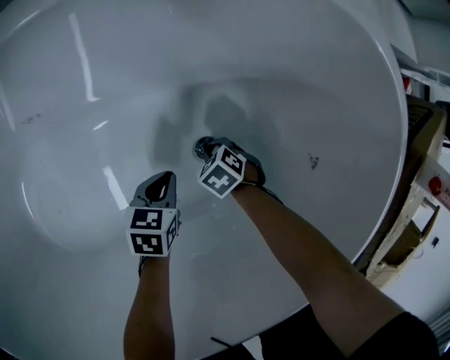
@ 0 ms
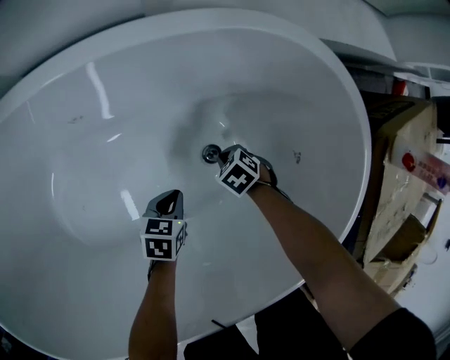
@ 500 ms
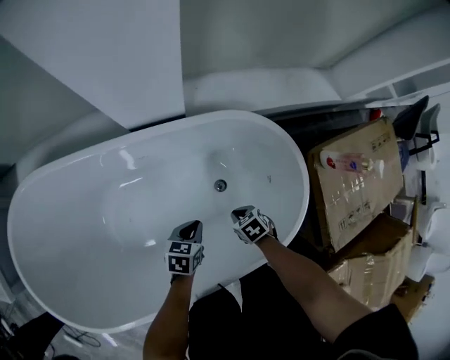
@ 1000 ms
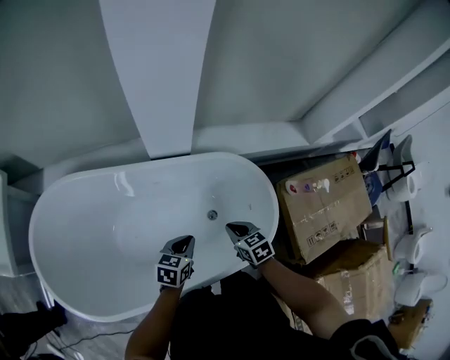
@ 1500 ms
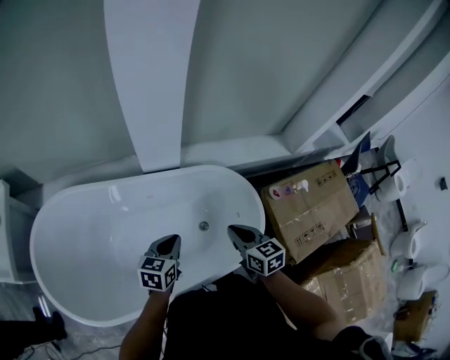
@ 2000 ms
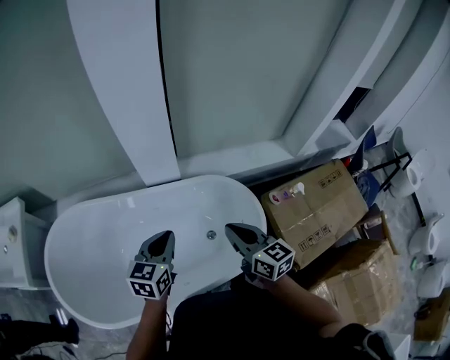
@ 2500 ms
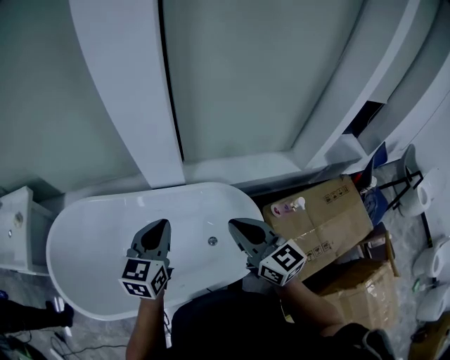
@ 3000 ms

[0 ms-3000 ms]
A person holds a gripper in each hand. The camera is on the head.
0 ms to 1500 ms: Both grippers move upward, about 60 cm. The right gripper tilts its fingers roughly 30 degrees upward.
1500 ms to 3000 ms: Both grippers move upward, roughly 35 cm. The left gripper turns by about 30 degrees; the right gripper angles its fingers upward, by approximately 40 degrees.

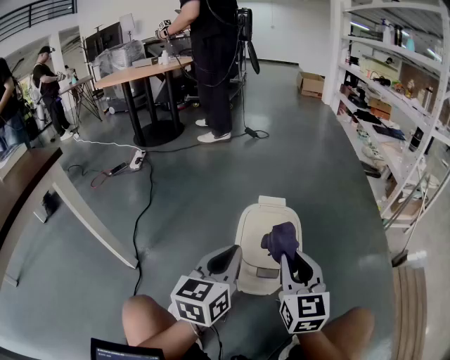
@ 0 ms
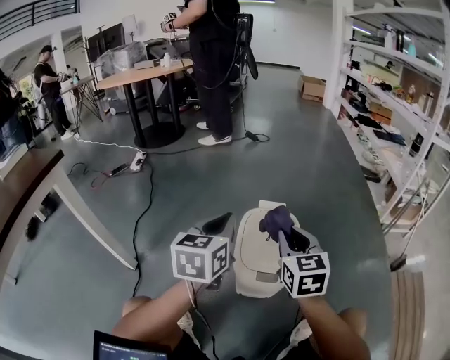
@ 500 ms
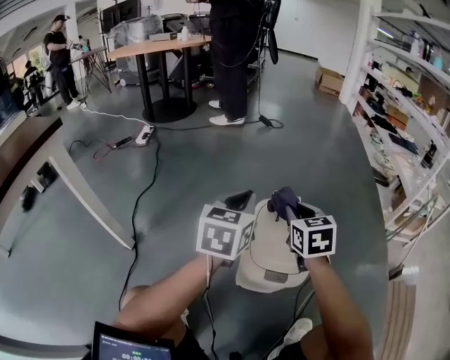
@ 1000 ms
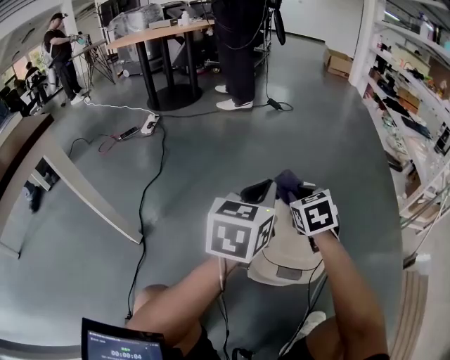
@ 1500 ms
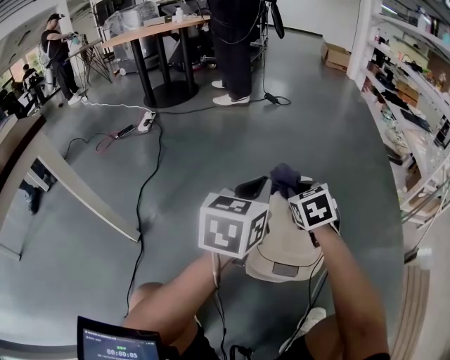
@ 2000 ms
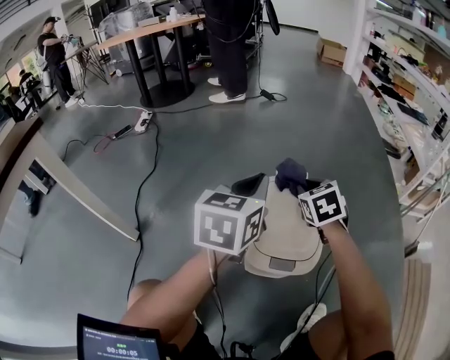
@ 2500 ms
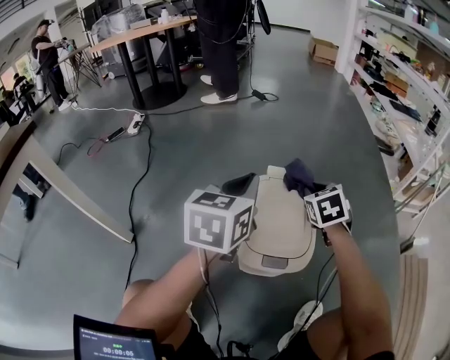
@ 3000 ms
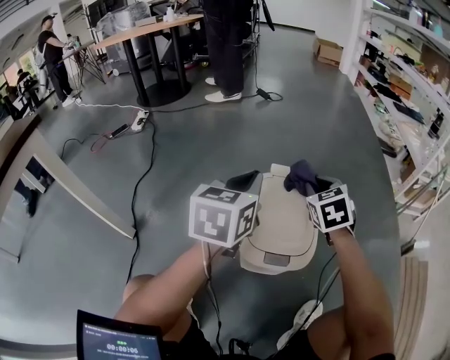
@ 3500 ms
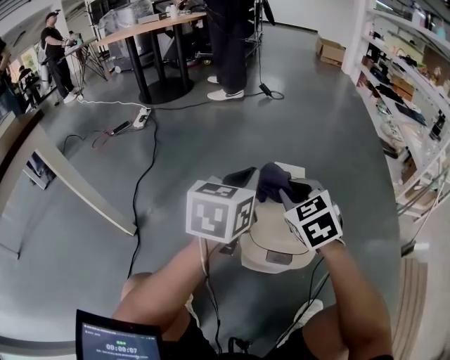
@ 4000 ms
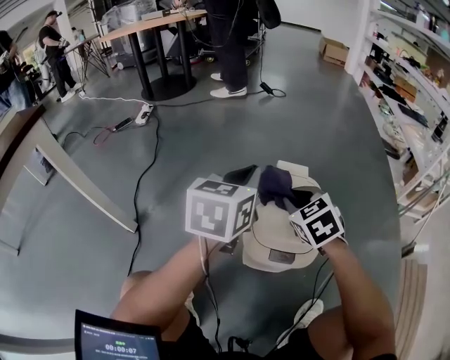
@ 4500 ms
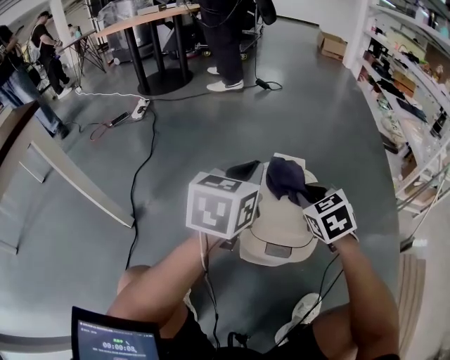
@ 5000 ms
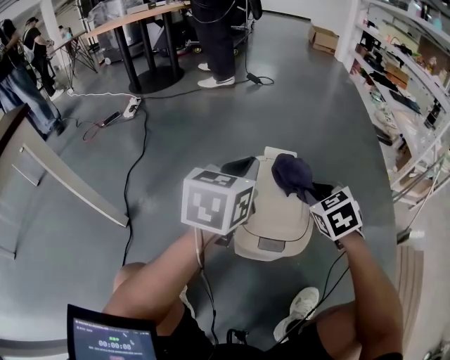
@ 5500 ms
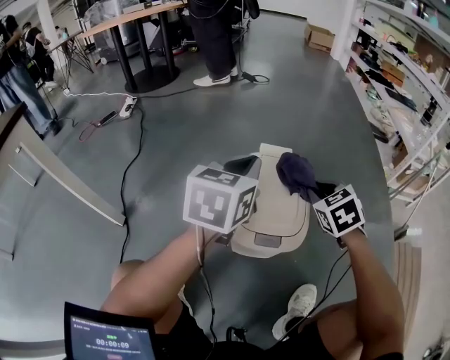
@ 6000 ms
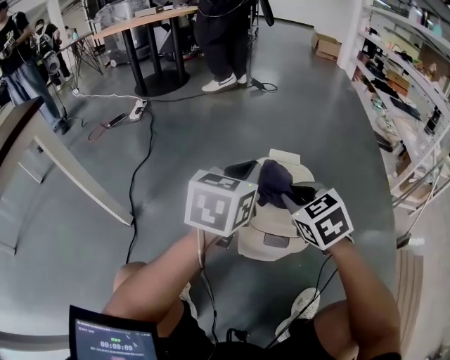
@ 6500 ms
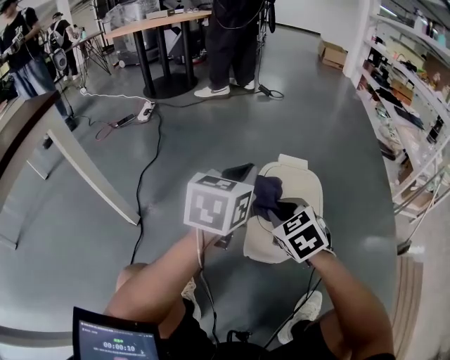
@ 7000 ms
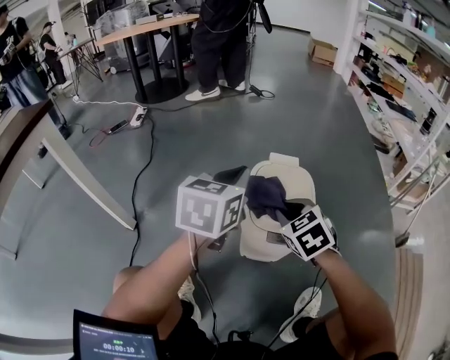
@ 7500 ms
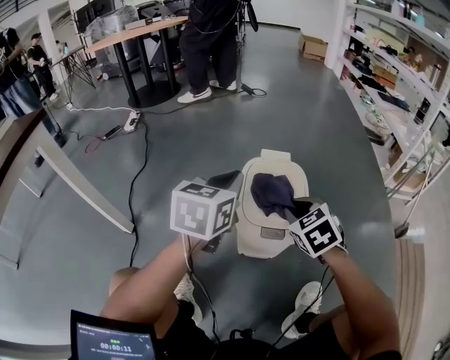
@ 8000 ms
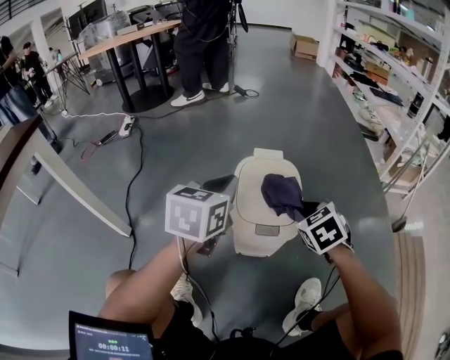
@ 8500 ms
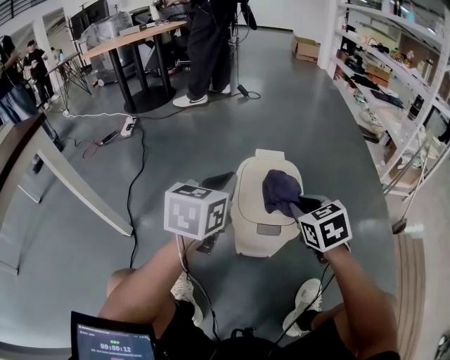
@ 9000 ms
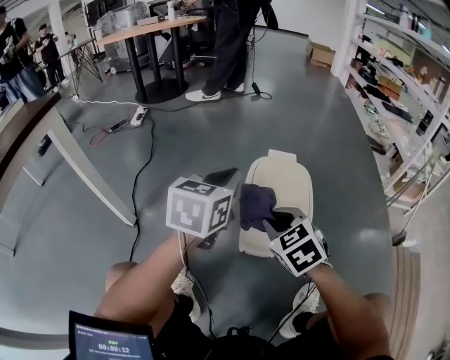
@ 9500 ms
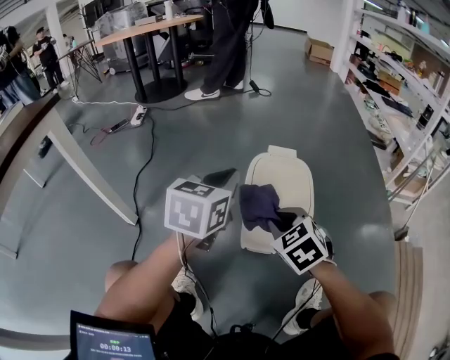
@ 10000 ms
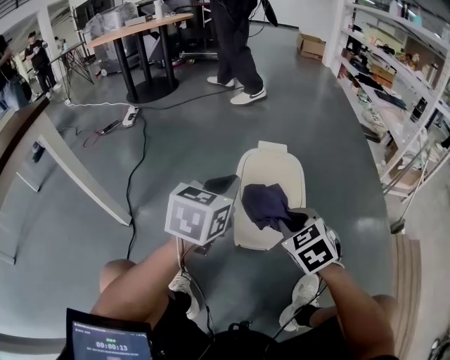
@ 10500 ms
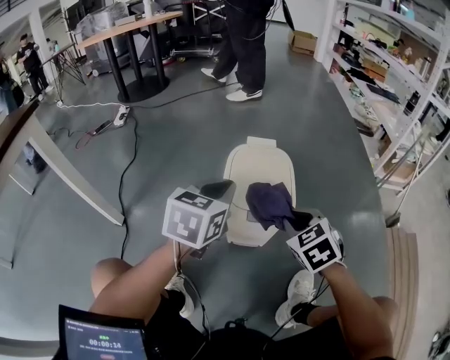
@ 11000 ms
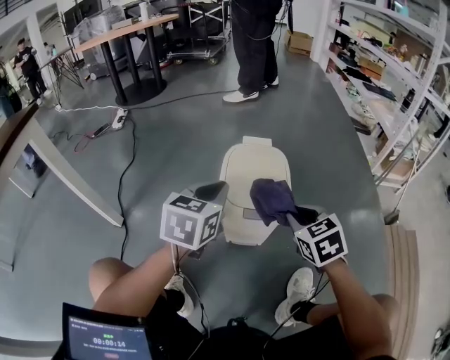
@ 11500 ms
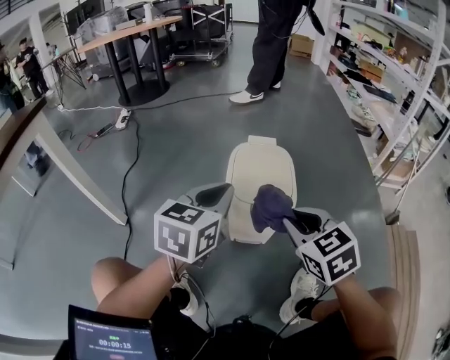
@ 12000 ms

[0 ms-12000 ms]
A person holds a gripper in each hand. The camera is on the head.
0 ms to 2000 ms: The right gripper goes about 25 cm forward and downward, and angles its fingers downward, by about 30 degrees. The left gripper goes roughly 15 cm forward.
2000 ms to 4000 ms: The right gripper goes approximately 5 cm backward, and reaches approximately 10 cm to the right, then returns.
4000 ms to 6000 ms: The right gripper goes some 15 cm to the right. Meanwhile the left gripper ends up approximately 5 cm from where it was.
6000 ms to 8000 ms: The right gripper shifts approximately 10 cm backward and to the left. The left gripper moves approximately 5 cm.
8000 ms to 10000 ms: The right gripper is displaced backward and to the left by roughly 10 cm.
10000 ms to 12000 ms: The right gripper goes approximately 10 cm to the right, backward and upward; the left gripper is displaced backward by approximately 5 cm.

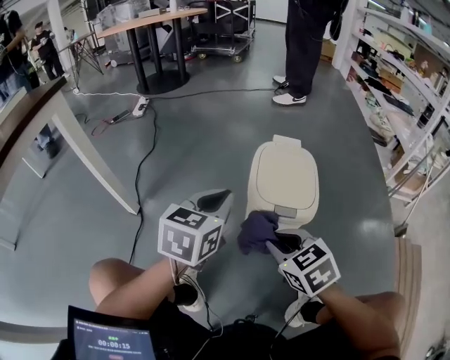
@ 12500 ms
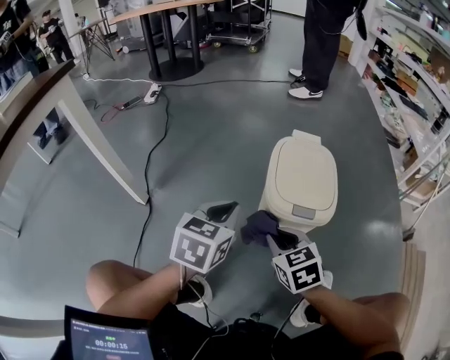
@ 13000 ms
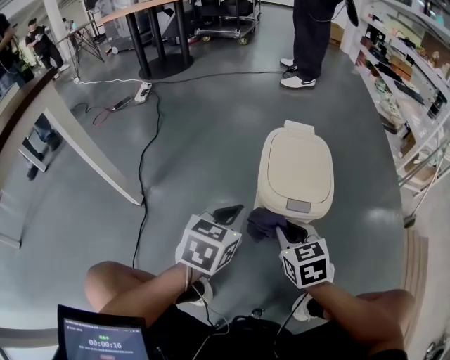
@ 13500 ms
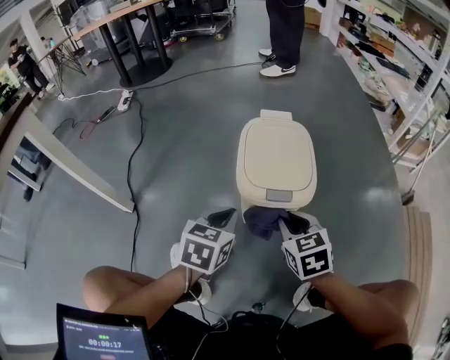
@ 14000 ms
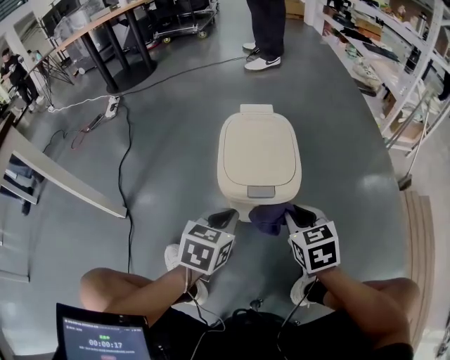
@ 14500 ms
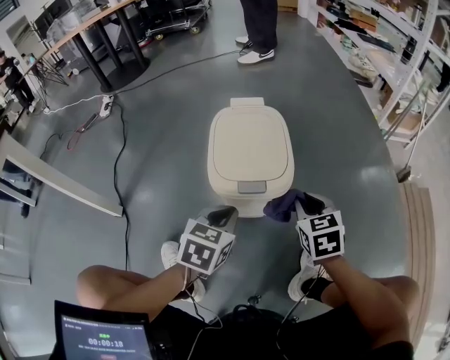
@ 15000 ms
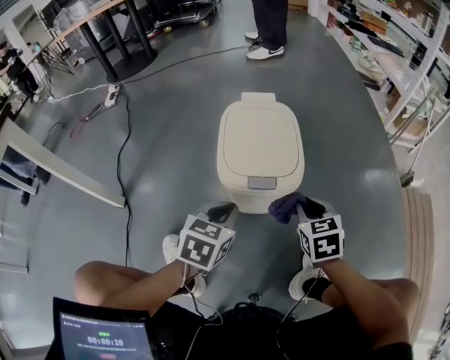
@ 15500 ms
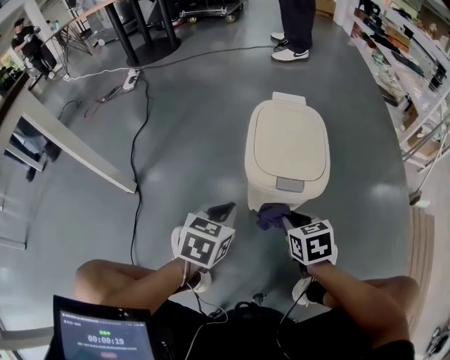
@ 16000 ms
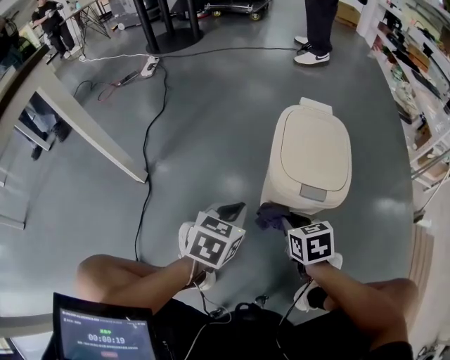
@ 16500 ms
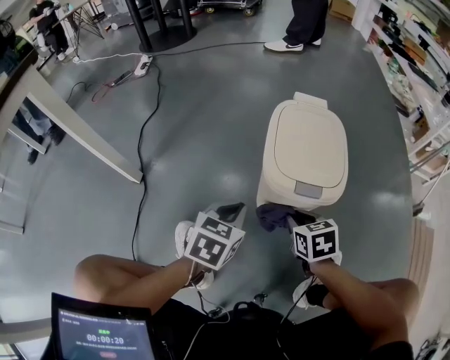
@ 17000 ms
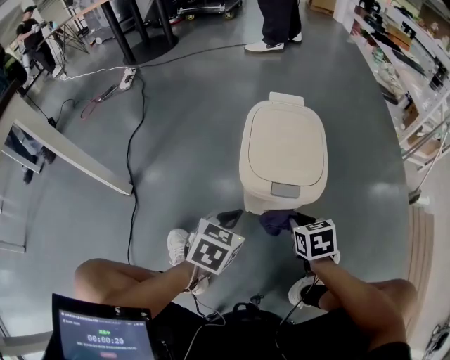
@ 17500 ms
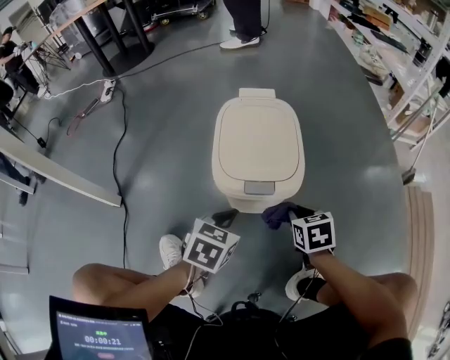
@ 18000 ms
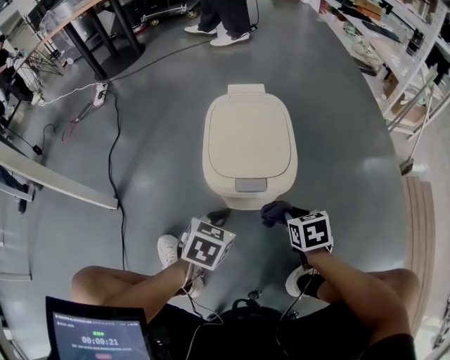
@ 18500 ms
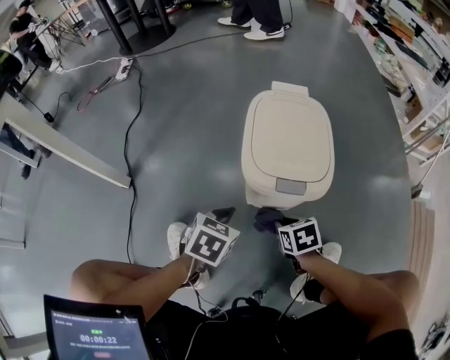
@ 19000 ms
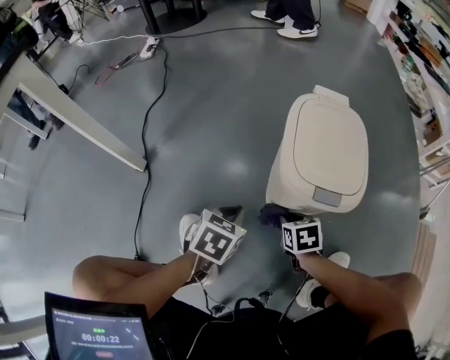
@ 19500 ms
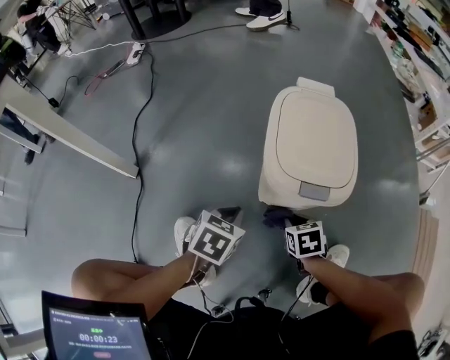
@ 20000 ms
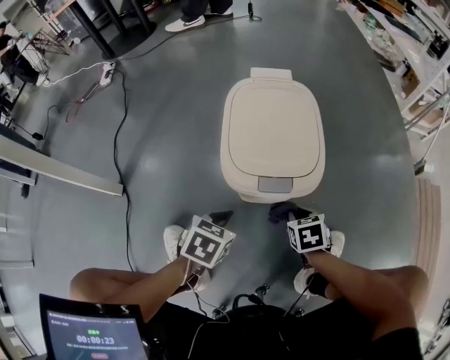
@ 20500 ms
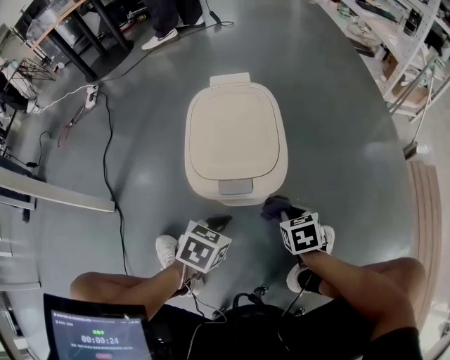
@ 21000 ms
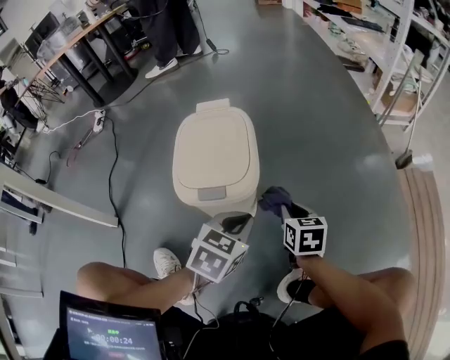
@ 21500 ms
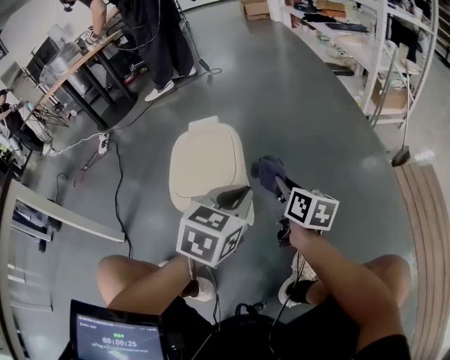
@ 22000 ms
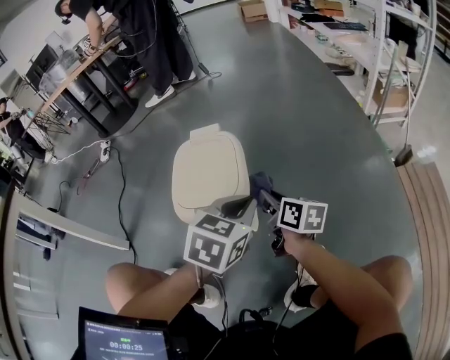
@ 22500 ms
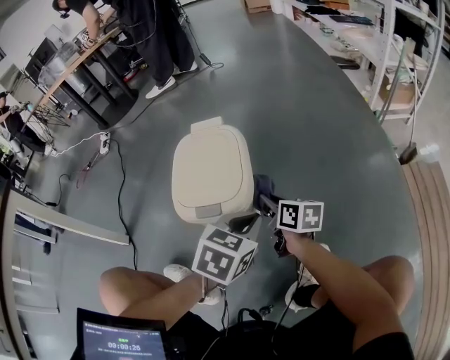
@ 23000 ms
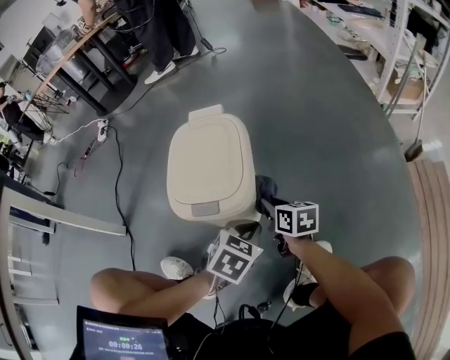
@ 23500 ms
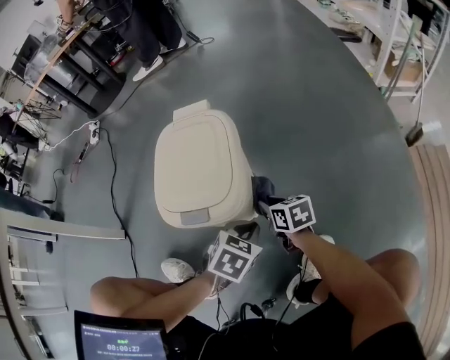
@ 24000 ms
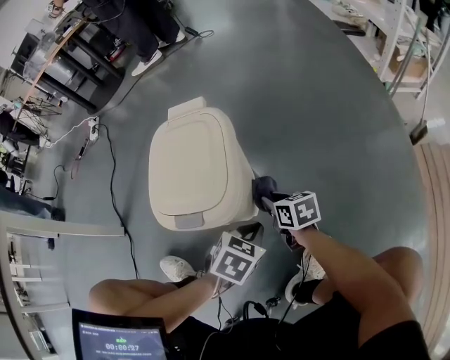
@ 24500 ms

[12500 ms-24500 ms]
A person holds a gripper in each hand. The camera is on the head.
12500 ms to 14500 ms: The right gripper is displaced to the right, downward and forward by some 15 cm, and changes its angle by some 30 degrees. The left gripper travels downward and to the right by approximately 15 cm.
14500 ms to 16500 ms: The left gripper shifts roughly 5 cm to the left; the right gripper moves downward and to the left, about 10 cm.
16500 ms to 18500 ms: The left gripper goes approximately 10 cm to the right and downward. Meanwhile the right gripper shifts roughly 15 cm to the right.
18500 ms to 20500 ms: The right gripper is displaced downward by approximately 5 cm, and moves about 15 cm to the left and comes back.
20500 ms to 22500 ms: The right gripper moves upward and forward, roughly 20 cm, and tips its fingers upward by some 40 degrees. Meanwhile the left gripper heads to the right and upward, covering approximately 30 cm, and changes its angle by some 20 degrees.
22500 ms to 24500 ms: Both grippers travel together downward, about 20 cm. The right gripper turns by approximately 30 degrees; the left gripper turns by about 20 degrees.
